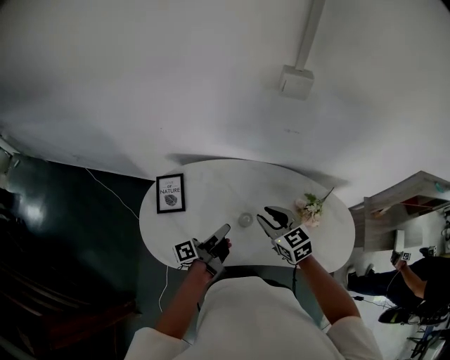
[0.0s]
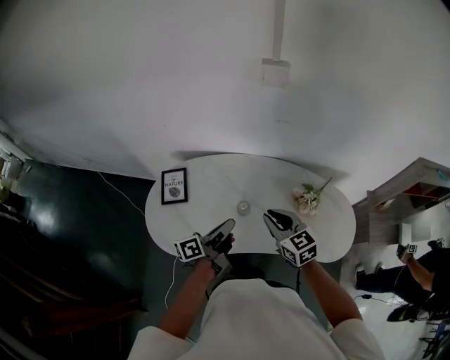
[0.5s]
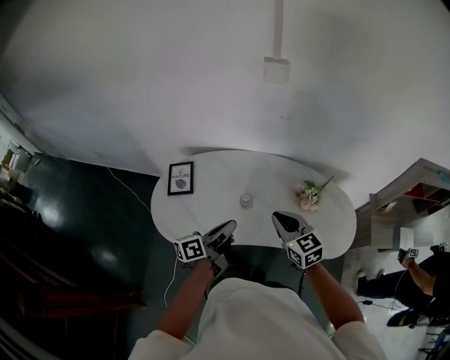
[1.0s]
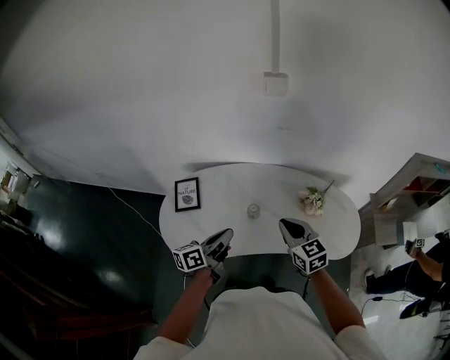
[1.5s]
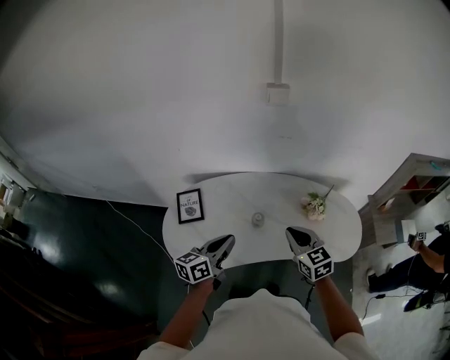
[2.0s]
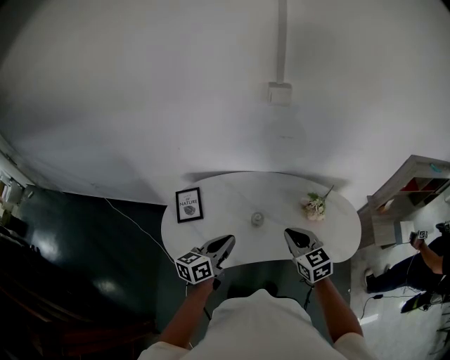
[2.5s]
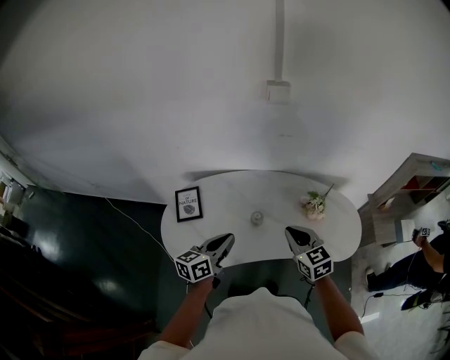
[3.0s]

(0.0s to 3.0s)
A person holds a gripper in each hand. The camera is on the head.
0.0s - 1.5s: The right gripper ends up about 15 cm from where it was, and closes.

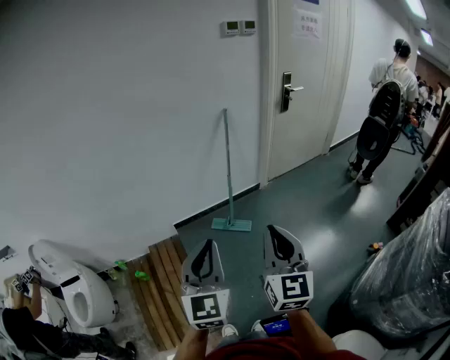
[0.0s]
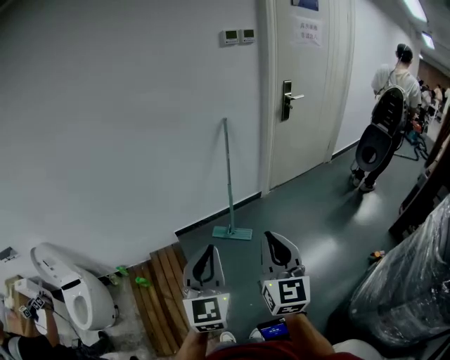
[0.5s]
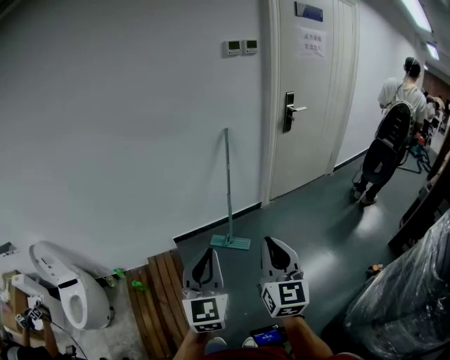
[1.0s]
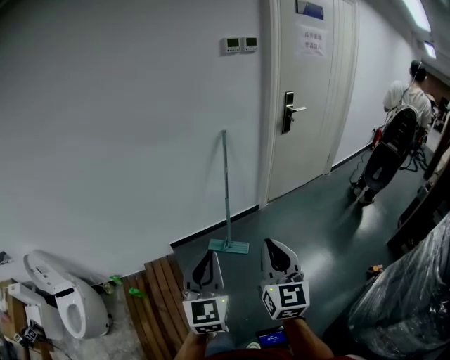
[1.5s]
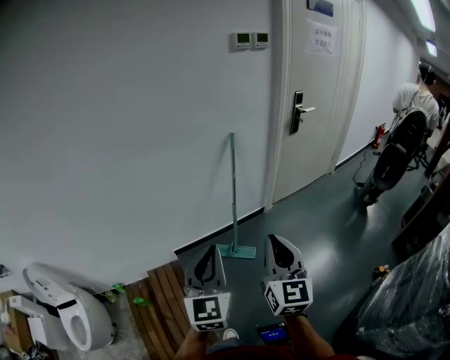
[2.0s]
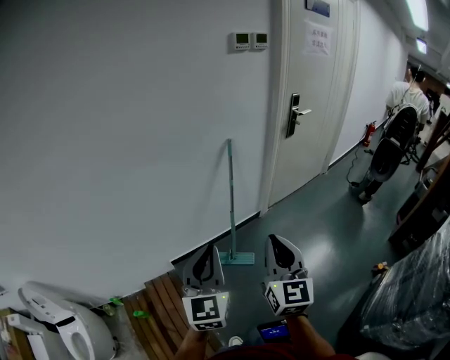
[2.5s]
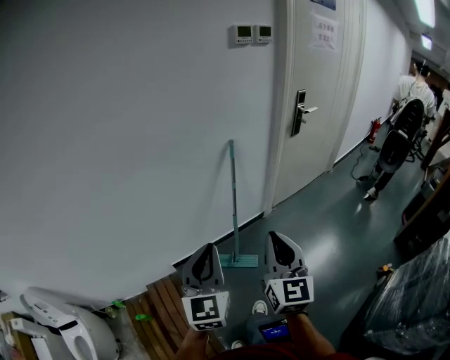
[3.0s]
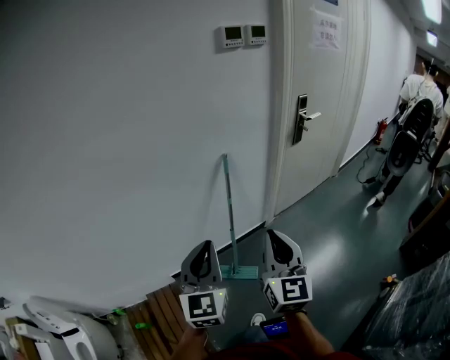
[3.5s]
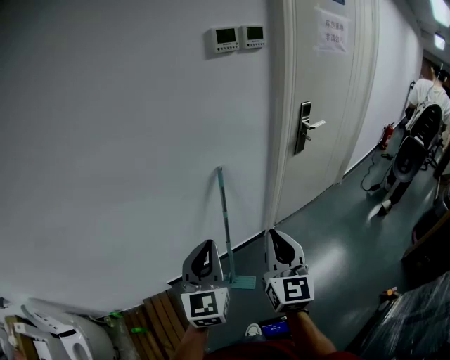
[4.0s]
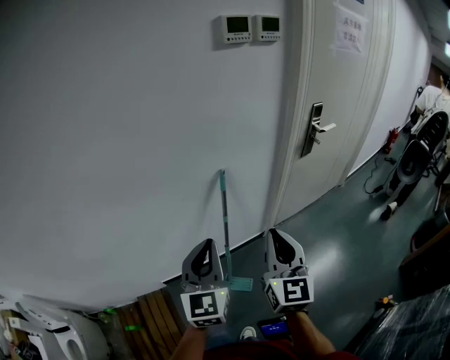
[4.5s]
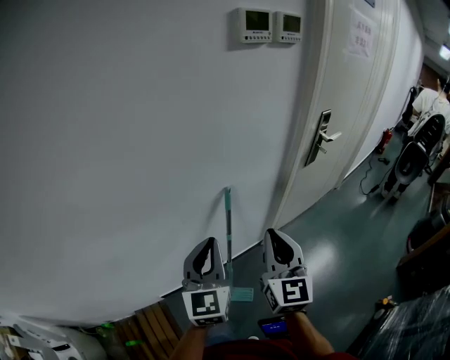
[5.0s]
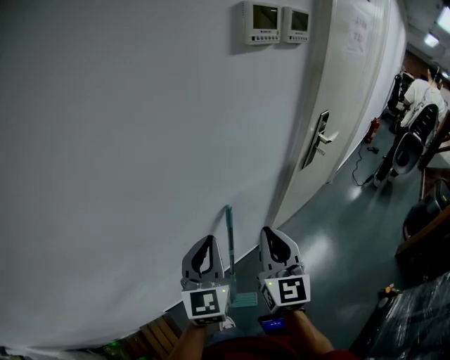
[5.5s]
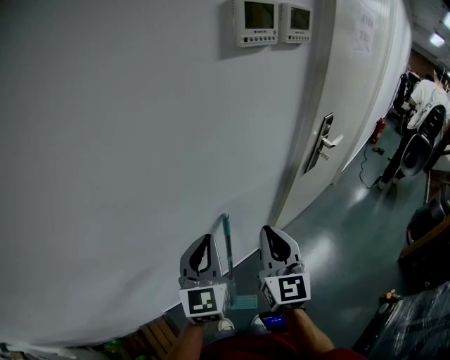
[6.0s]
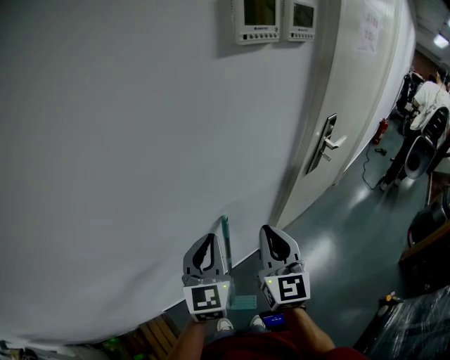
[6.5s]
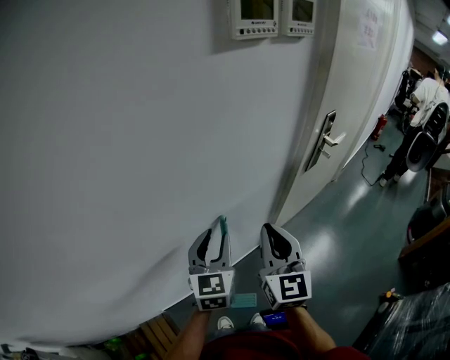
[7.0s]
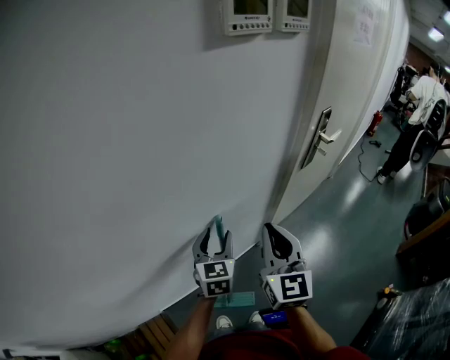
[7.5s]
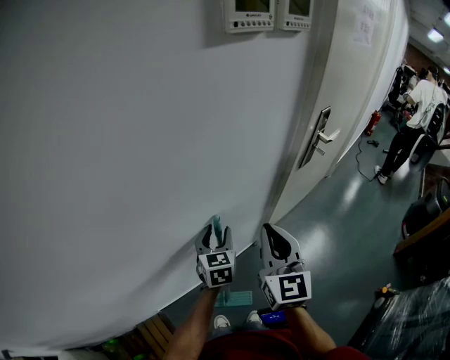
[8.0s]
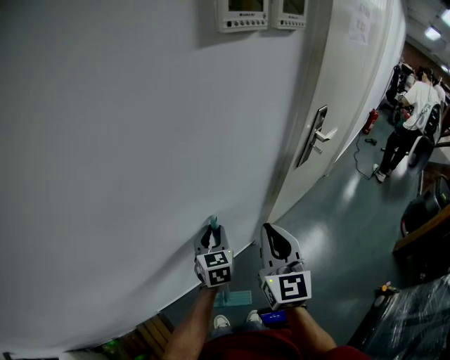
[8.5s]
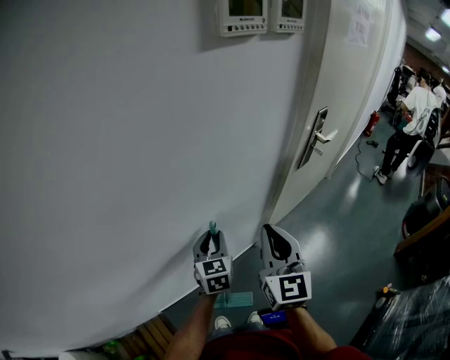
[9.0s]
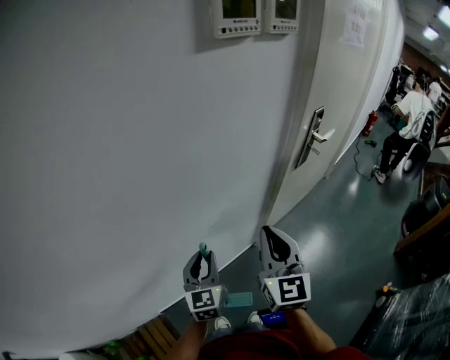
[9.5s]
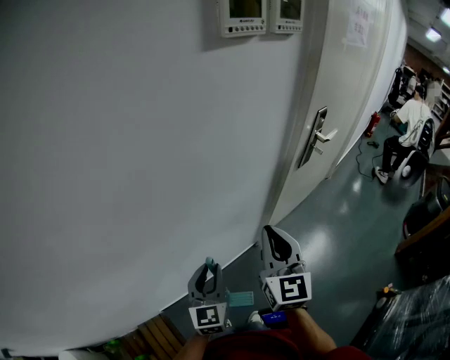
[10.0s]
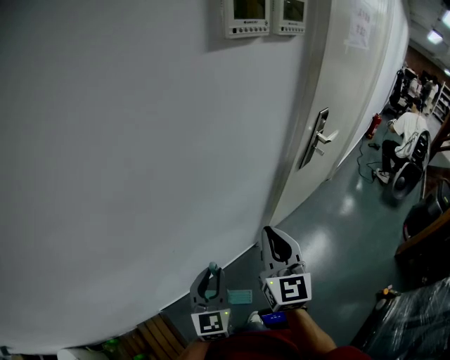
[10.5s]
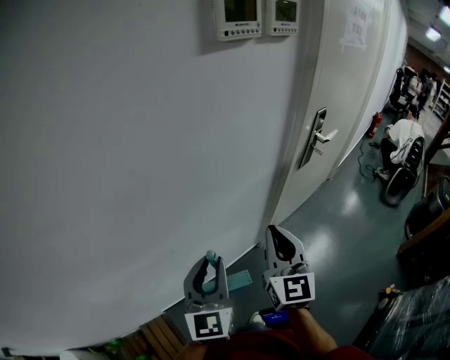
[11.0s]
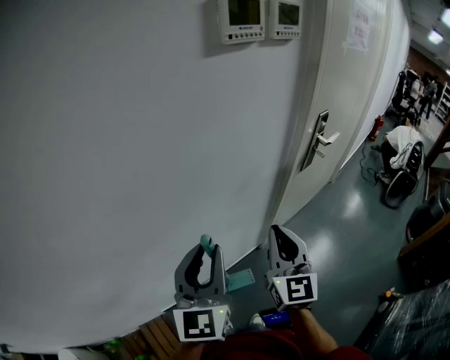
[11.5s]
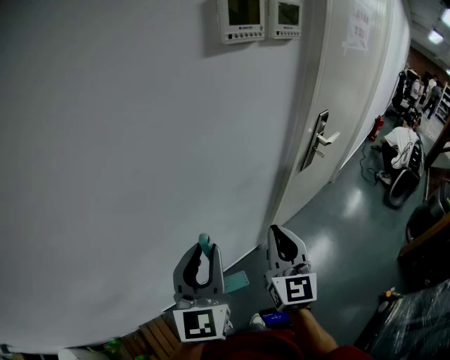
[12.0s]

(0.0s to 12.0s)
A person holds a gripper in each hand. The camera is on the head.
0.0s - 2.0s: The two grippers go roughly 20 cm forward.
2.0s - 4.0s: Both grippers travel together forward, approximately 35 cm.
4.0s - 6.0s: Both grippers travel together forward, approximately 30 cm.
6.0s - 8.0s: The left gripper travels downward and forward by some 20 cm, changes its angle by some 20 degrees, and opens its fingers.
8.0s - 10.0s: The left gripper shifts some 15 cm backward, and closes up.
10.0s - 12.0s: The left gripper heads upward, covering some 20 cm.

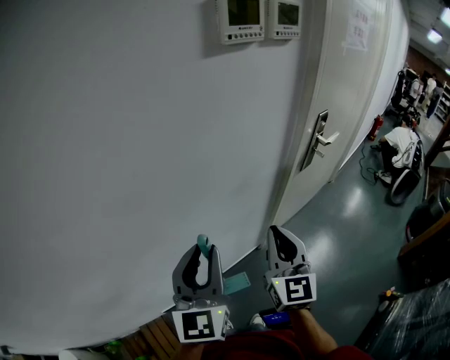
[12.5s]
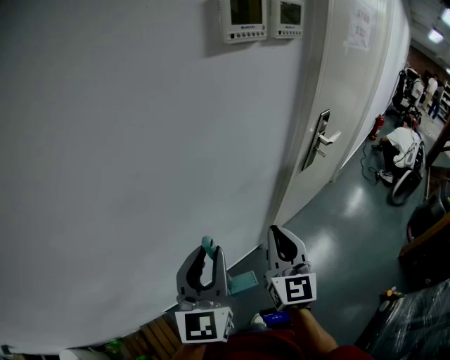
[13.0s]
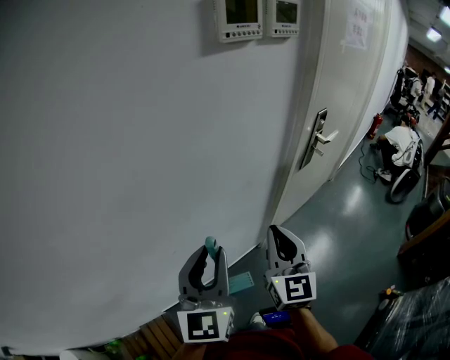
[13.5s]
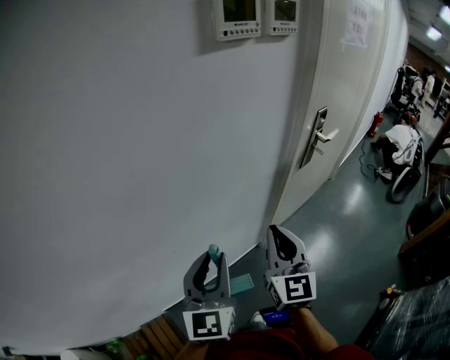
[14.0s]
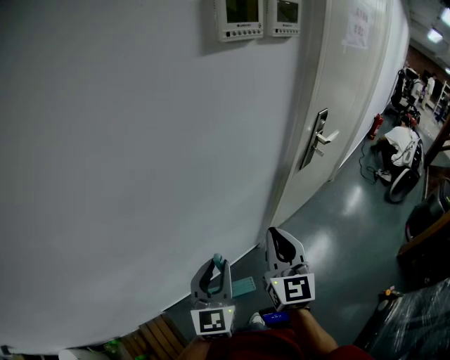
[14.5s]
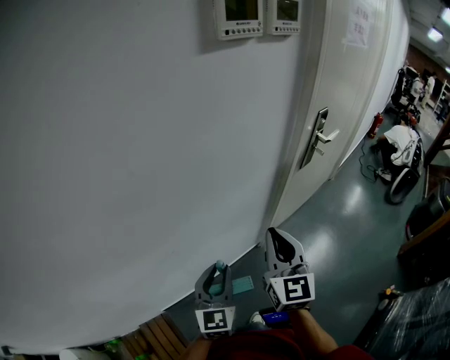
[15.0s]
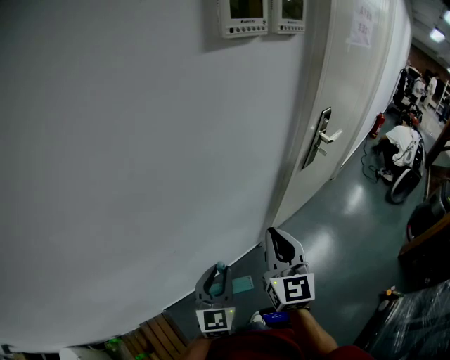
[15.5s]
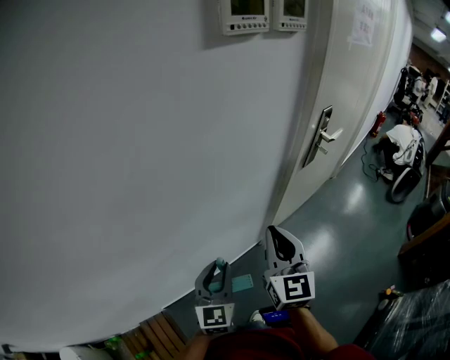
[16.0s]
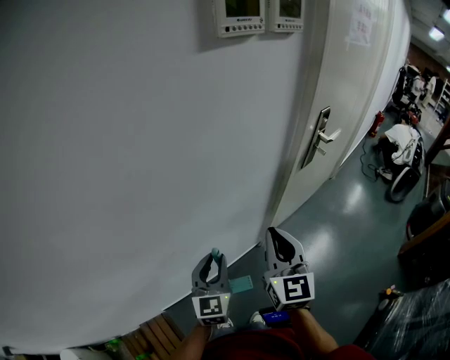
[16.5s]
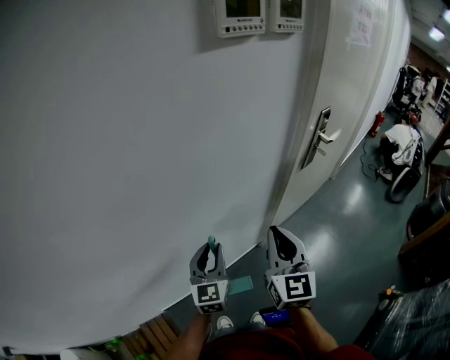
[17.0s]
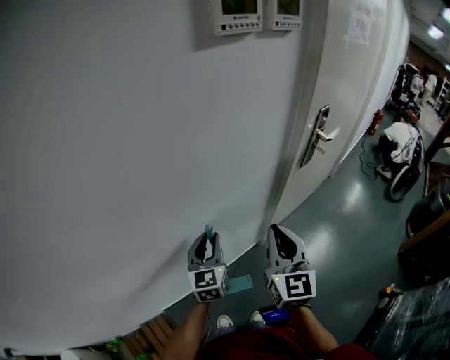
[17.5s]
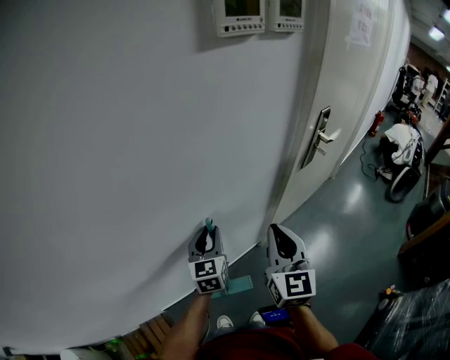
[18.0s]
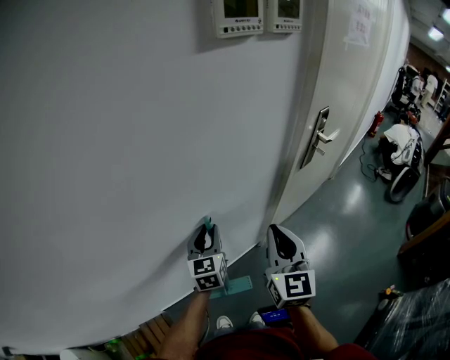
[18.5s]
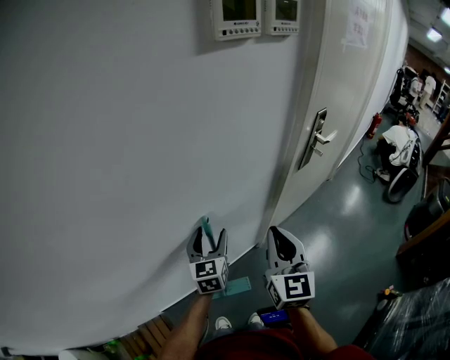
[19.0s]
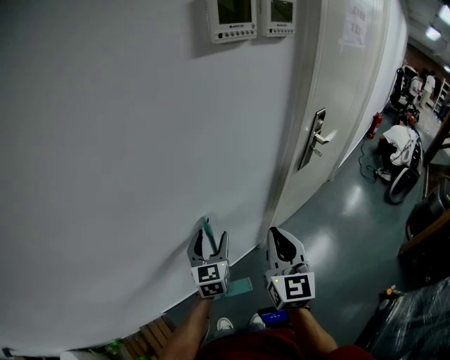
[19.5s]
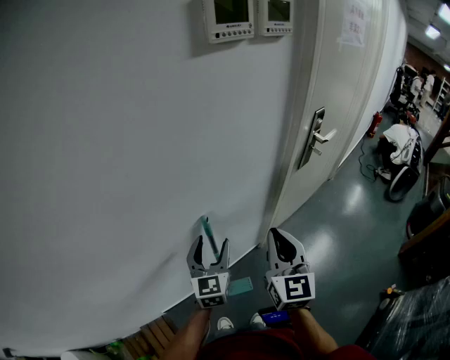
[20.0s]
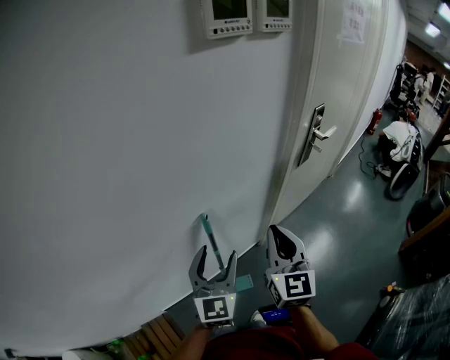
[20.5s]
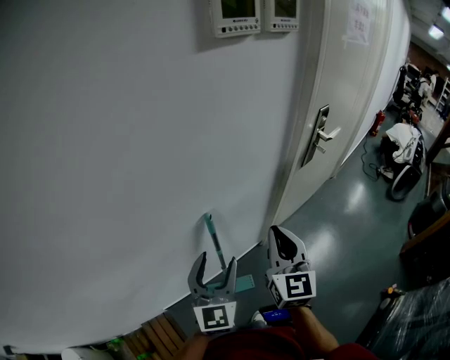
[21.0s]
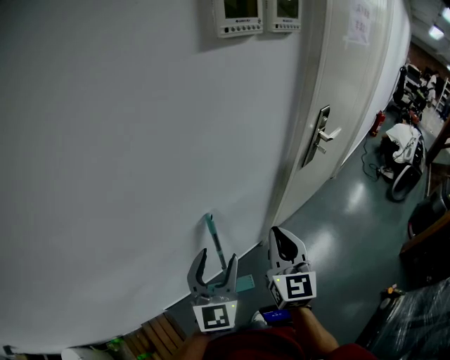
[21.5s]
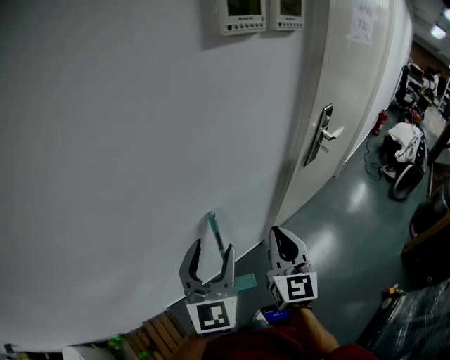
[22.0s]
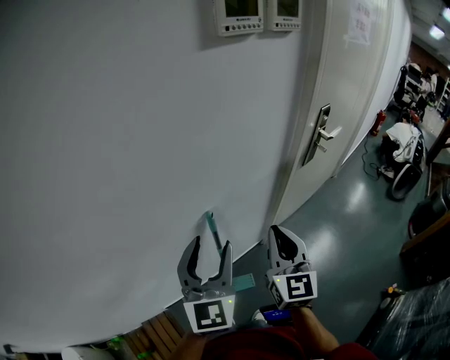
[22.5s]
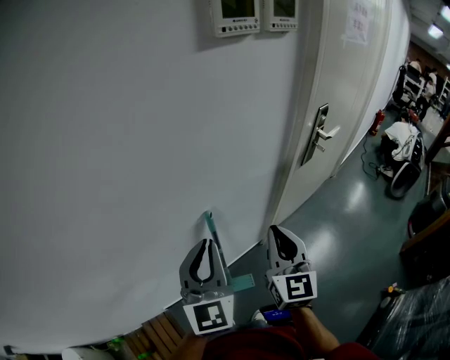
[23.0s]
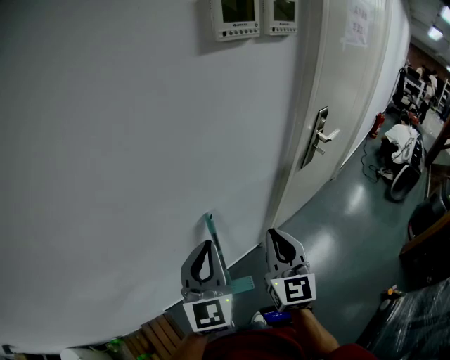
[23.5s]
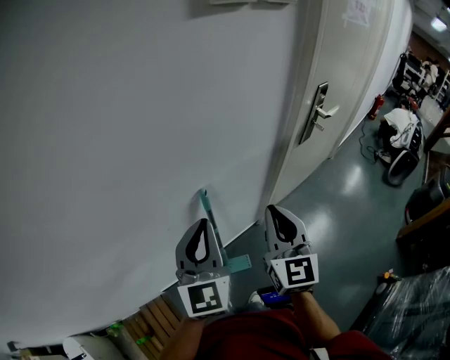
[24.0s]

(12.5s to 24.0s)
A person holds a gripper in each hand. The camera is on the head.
12.5s - 14.5s: The left gripper heads downward, covering about 10 cm.
14.5s - 16.5s: The left gripper travels downward by some 5 cm.
16.5s - 18.5s: The left gripper travels forward by some 10 cm.
18.5s - 20.0s: The left gripper moves backward, roughly 5 cm, and opens up.
20.0s - 22.0s: The left gripper is displaced upward and backward by approximately 15 cm.
22.0s - 24.0s: The left gripper closes up.

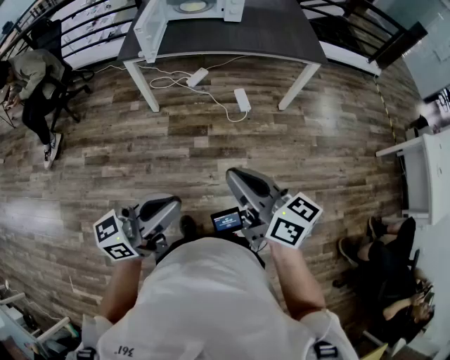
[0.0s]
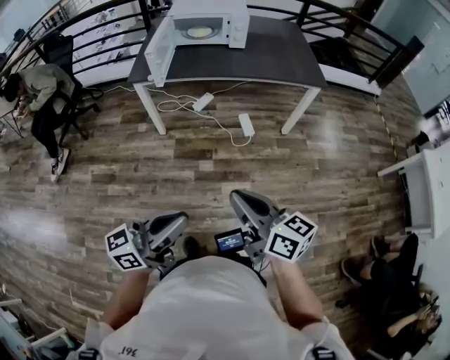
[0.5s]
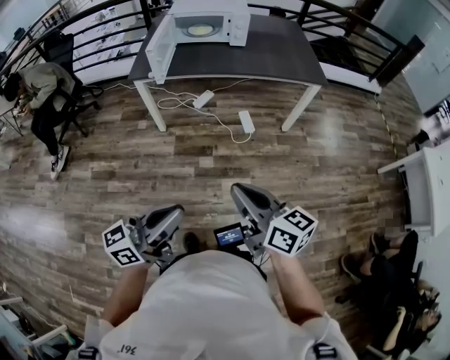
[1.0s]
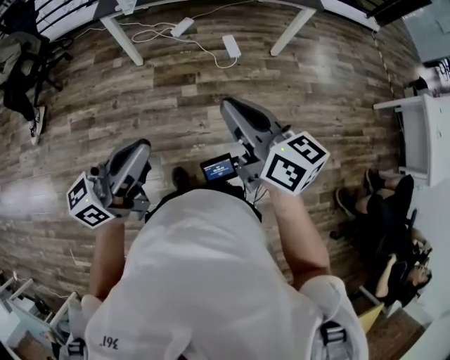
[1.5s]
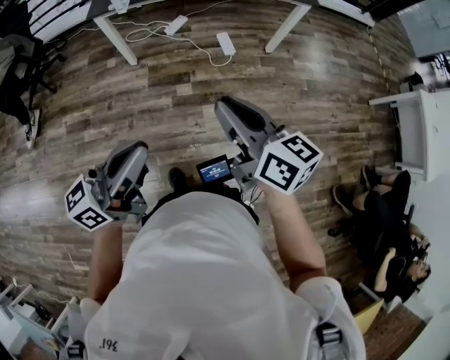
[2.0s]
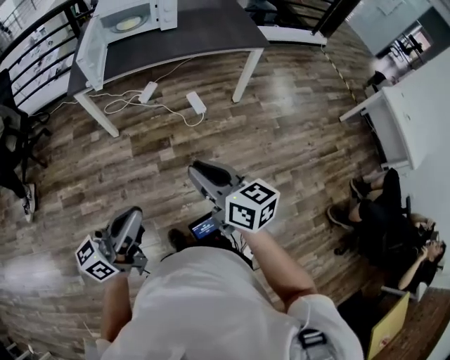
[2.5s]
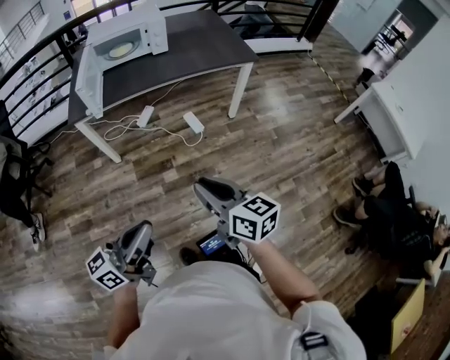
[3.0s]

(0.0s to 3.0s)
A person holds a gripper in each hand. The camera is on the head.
0.0s - 3.0s: There are only small adjustments of the grippers.
